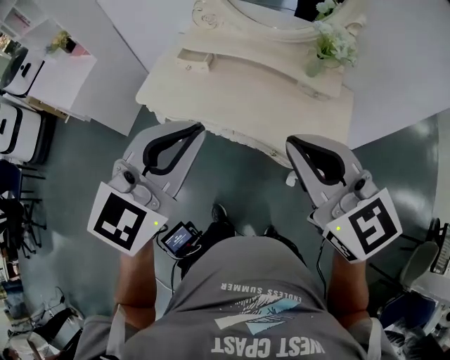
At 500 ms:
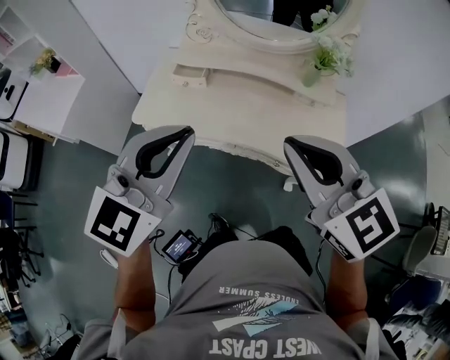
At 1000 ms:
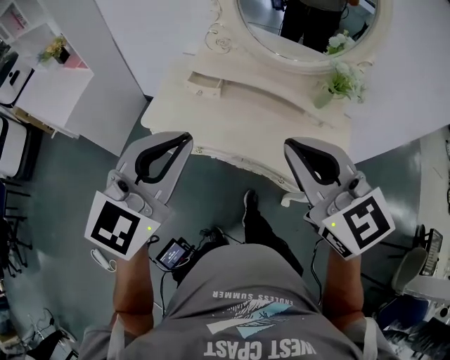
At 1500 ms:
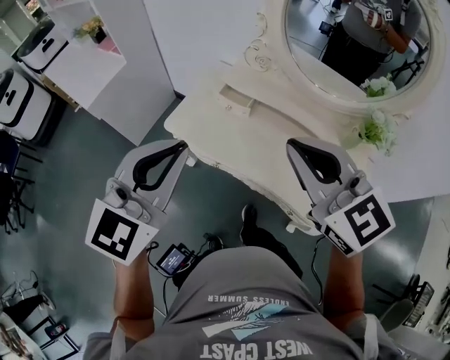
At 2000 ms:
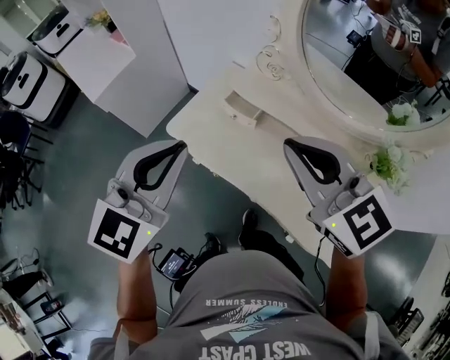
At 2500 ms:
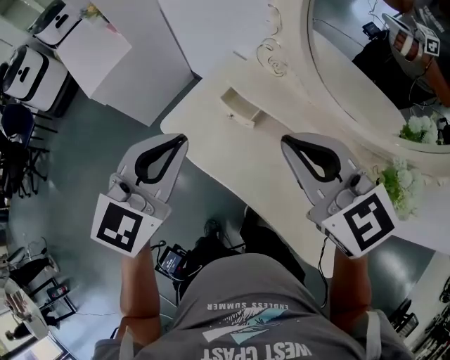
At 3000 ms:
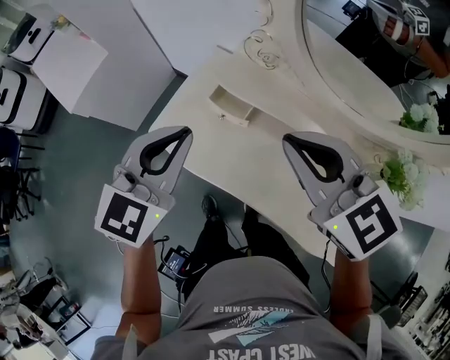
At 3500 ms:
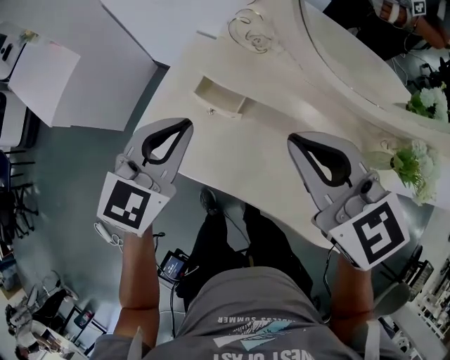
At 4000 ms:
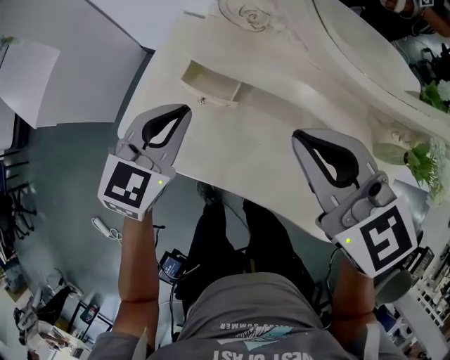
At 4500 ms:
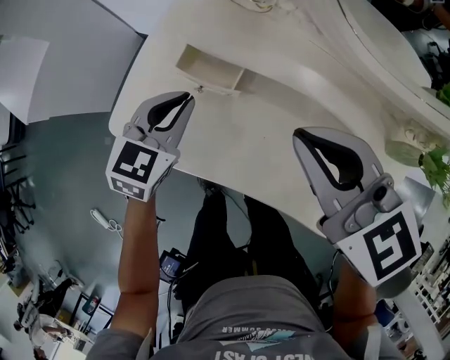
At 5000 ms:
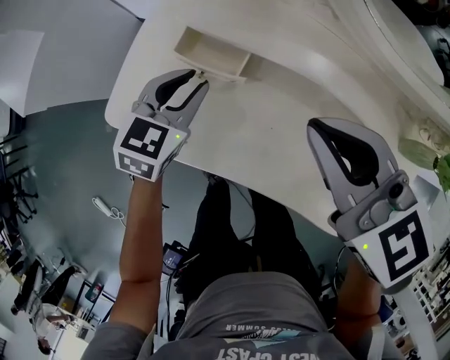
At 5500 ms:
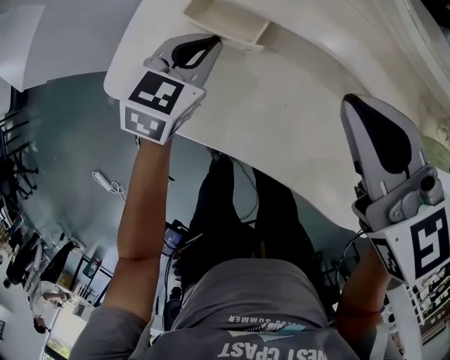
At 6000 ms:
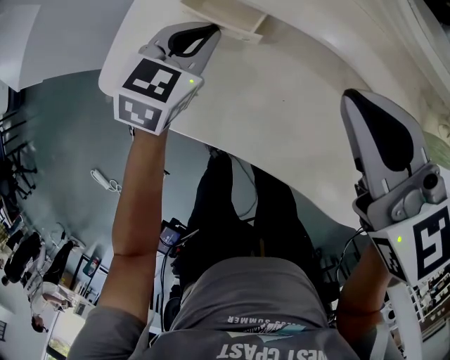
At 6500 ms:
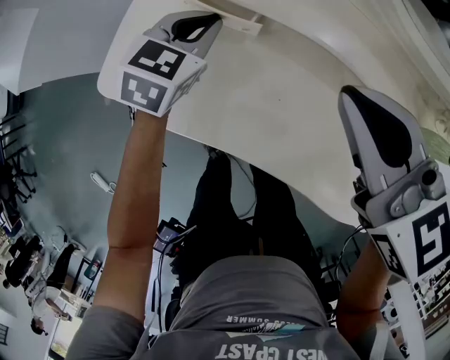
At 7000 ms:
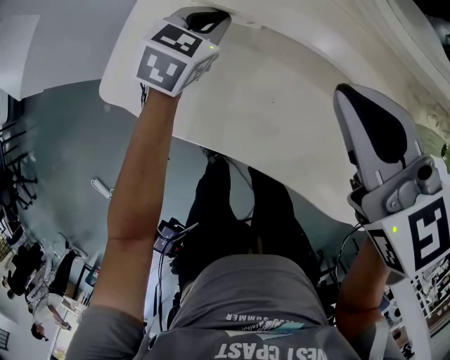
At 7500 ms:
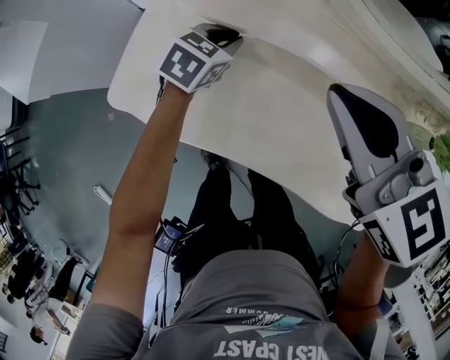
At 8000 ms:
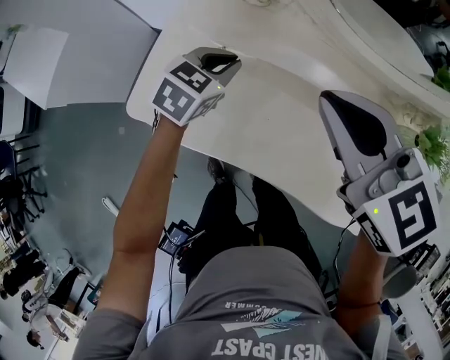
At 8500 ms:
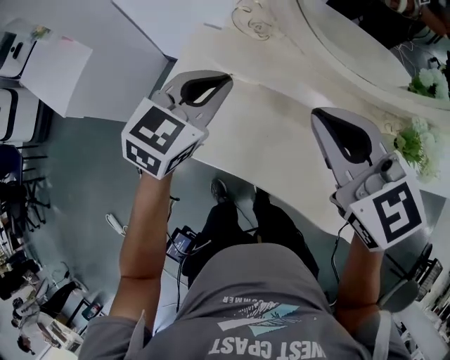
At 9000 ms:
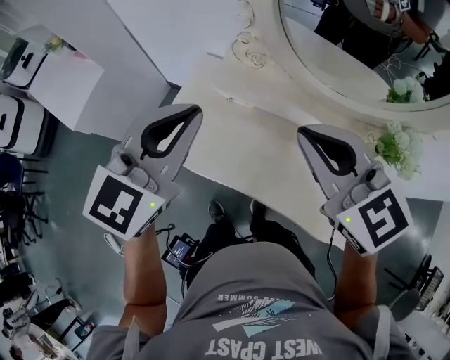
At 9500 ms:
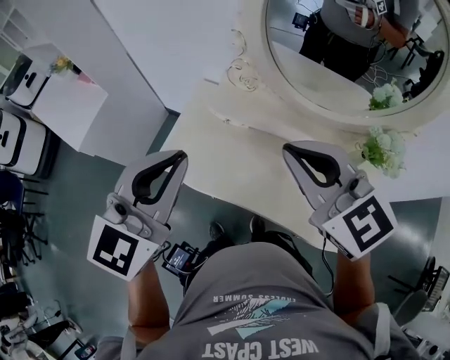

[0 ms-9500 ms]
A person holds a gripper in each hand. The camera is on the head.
0 ms to 2000 ms: The right gripper moves about 30 cm. Meanwhile the left gripper shifts by about 25 cm, and rotates approximately 20 degrees.
2000 ms to 4000 ms: The left gripper shifts about 35 cm downward and forward, while the right gripper travels downward and forward by about 20 cm.
4000 ms to 5500 ms: The right gripper travels downward by roughly 10 cm; the left gripper travels downward by about 15 cm, and opens, then closes once more.
5500 ms to 7500 ms: The left gripper moves to the right, about 5 cm.
7500 ms to 9500 ms: The left gripper travels upward and backward by approximately 50 cm, and angles its fingers upward, by about 30 degrees, while the right gripper is displaced upward and backward by roughly 25 cm.

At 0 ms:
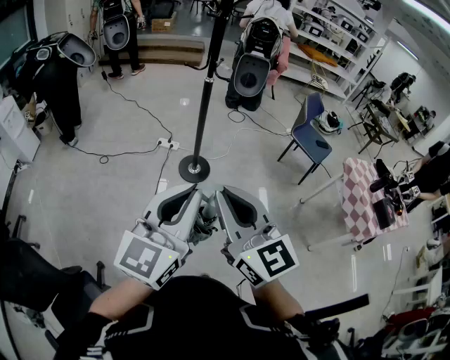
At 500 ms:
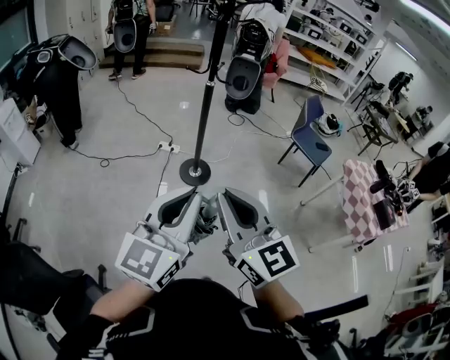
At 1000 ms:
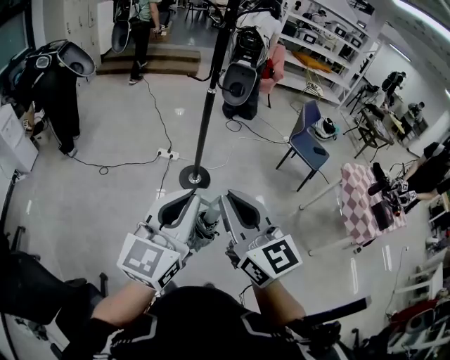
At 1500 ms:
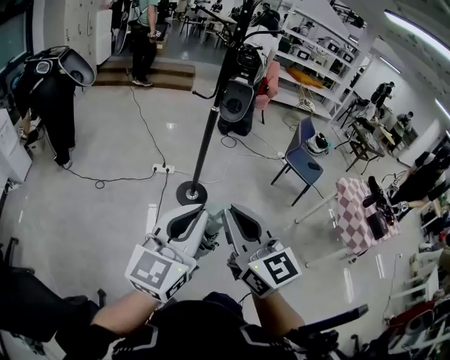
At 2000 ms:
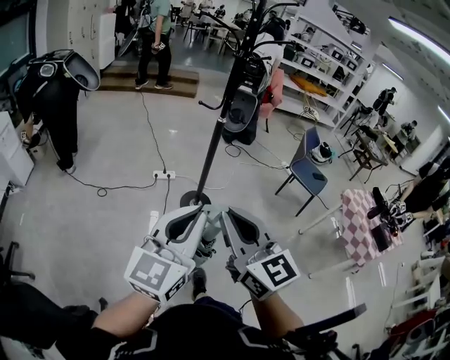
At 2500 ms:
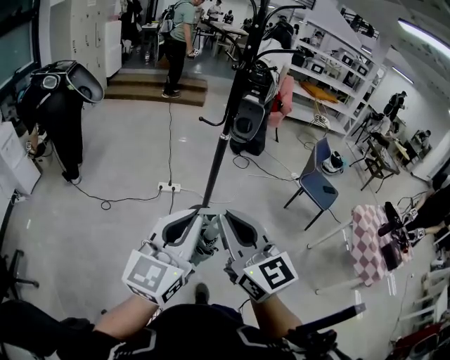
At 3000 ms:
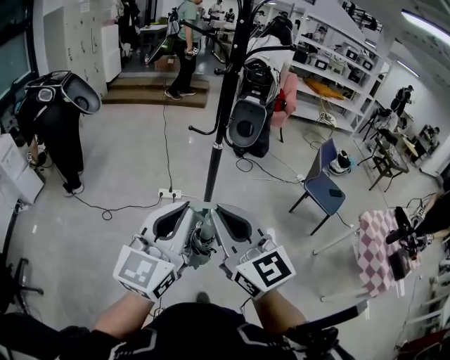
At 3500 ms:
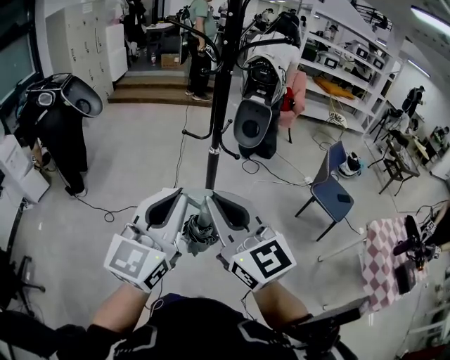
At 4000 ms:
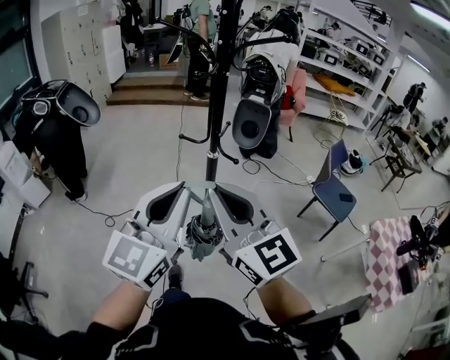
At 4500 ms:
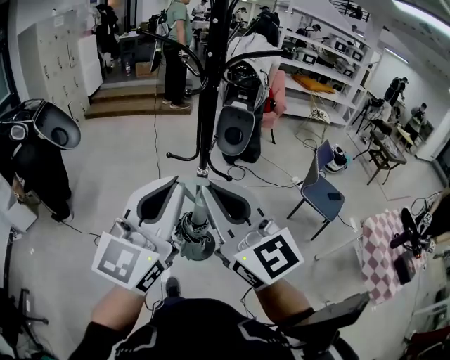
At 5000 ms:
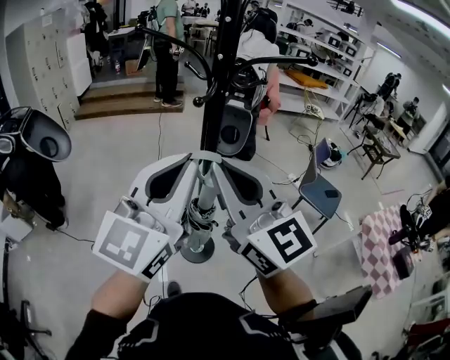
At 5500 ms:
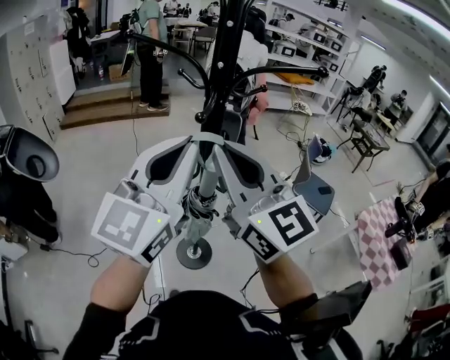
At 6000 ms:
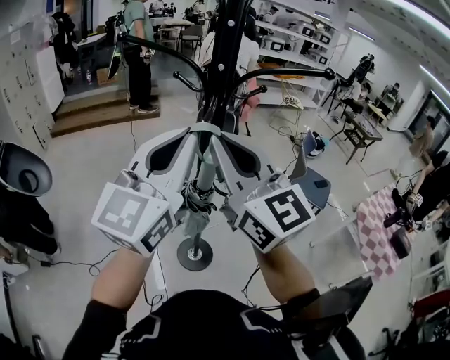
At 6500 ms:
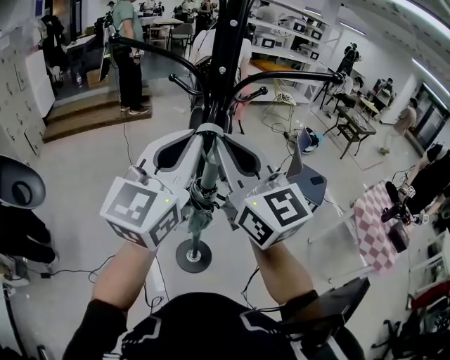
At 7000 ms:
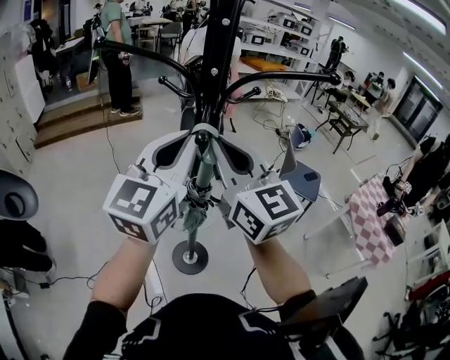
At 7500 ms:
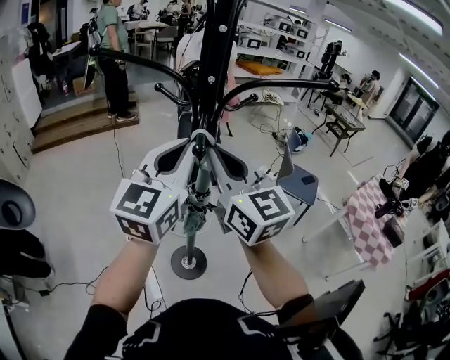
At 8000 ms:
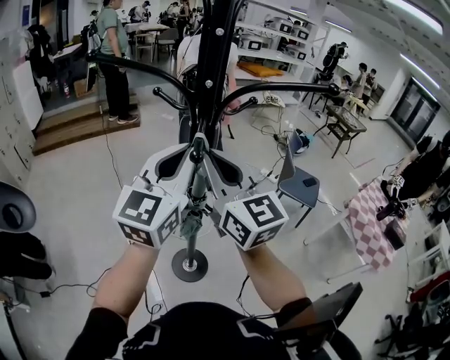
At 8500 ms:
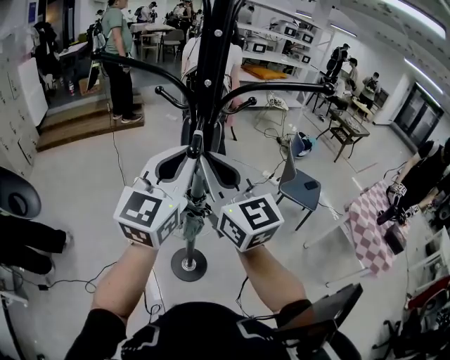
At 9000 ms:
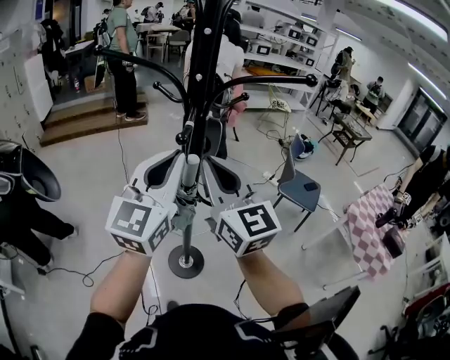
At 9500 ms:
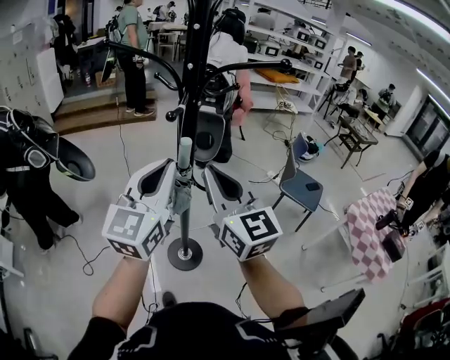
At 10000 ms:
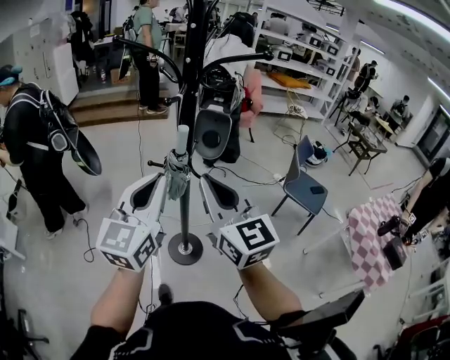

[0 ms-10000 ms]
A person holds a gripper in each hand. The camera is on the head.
0 ms to 2000 ms: The grippers both shift to the left and forward by about 15 cm.
2000 ms to 4000 ms: Both grippers move forward and to the right, about 30 cm.
4000 ms to 6000 ms: The grippers both shift forward by some 25 cm. The right gripper changes its angle by approximately 20 degrees.
6000 ms to 8000 ms: The two grippers go approximately 10 cm forward and downward.
8000 ms to 10000 ms: The left gripper heads backward, covering approximately 20 cm; the right gripper travels backward and to the right by roughly 20 cm.

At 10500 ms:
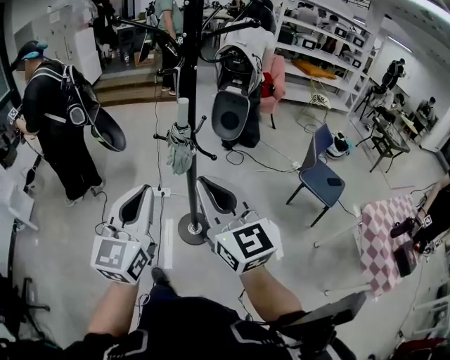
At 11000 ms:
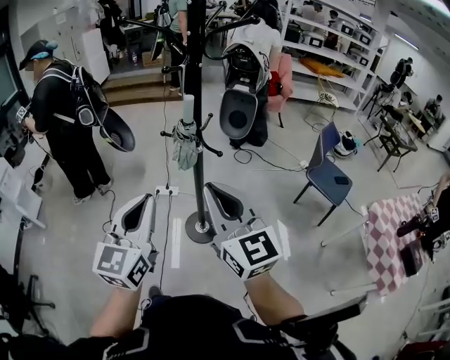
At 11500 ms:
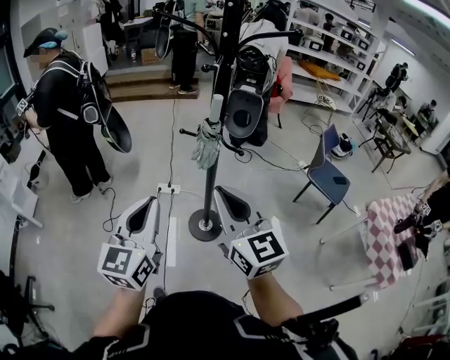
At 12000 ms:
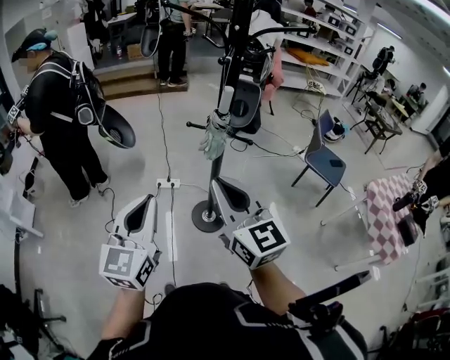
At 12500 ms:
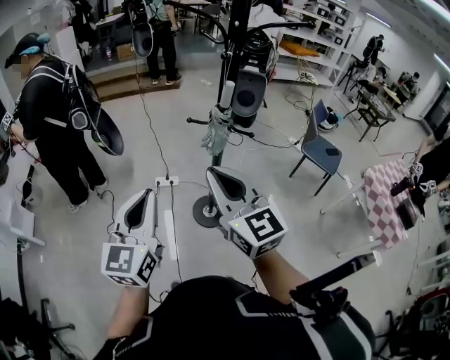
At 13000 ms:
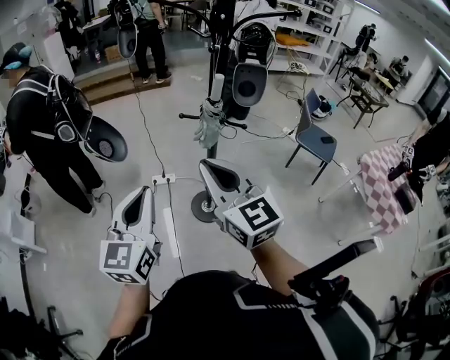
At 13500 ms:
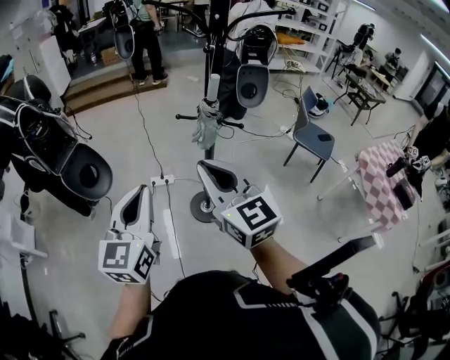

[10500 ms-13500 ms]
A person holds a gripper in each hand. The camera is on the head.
10500 ms to 12000 ms: Both grippers travel together to the left, some 15 cm.
12000 ms to 13500 ms: There are only small adjustments of the grippers.

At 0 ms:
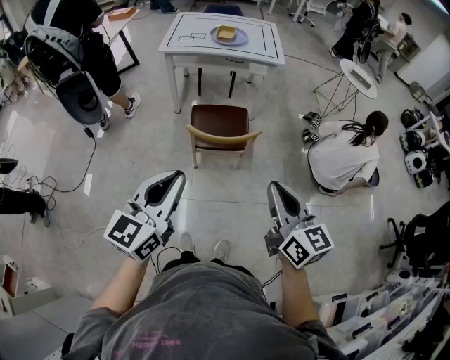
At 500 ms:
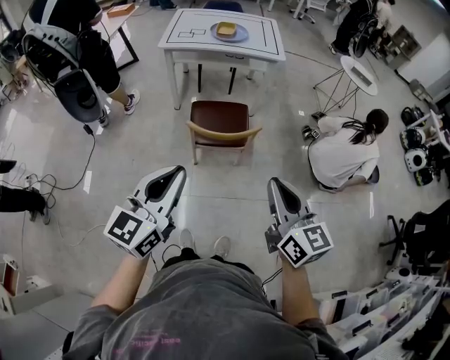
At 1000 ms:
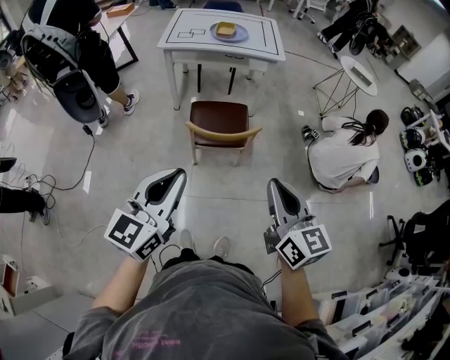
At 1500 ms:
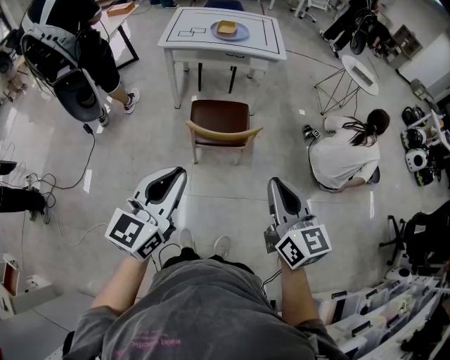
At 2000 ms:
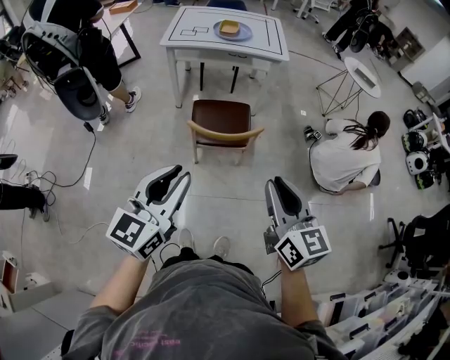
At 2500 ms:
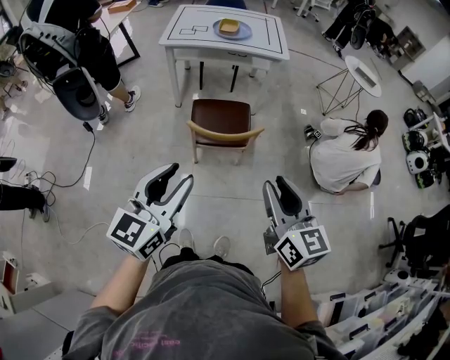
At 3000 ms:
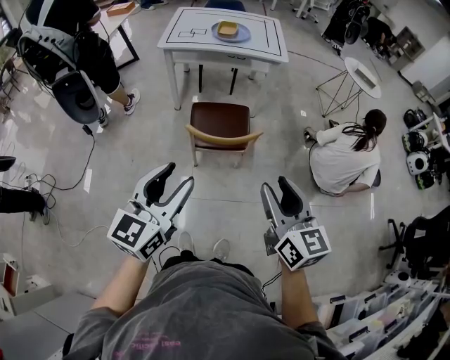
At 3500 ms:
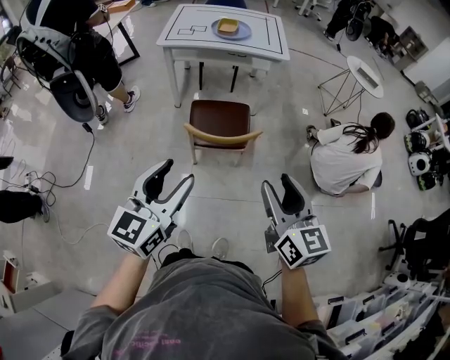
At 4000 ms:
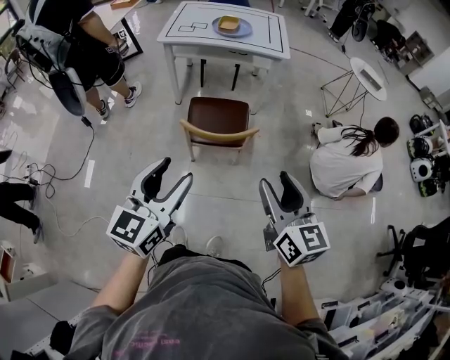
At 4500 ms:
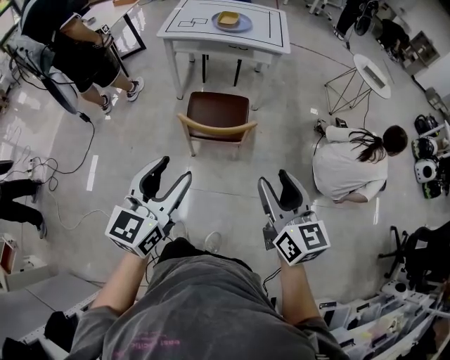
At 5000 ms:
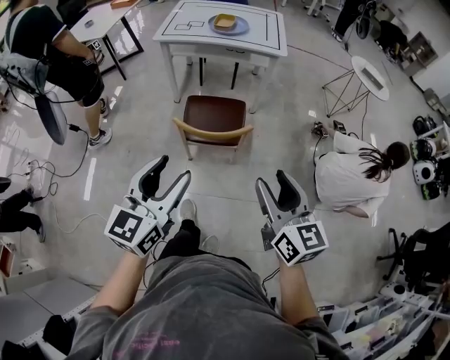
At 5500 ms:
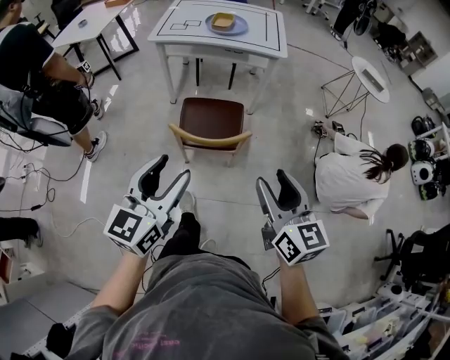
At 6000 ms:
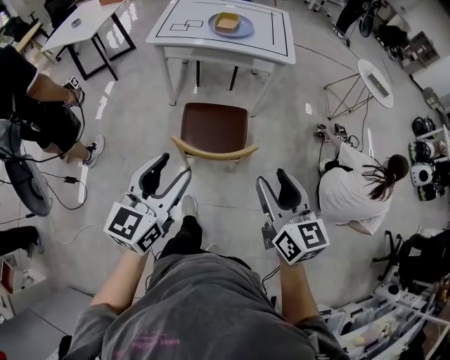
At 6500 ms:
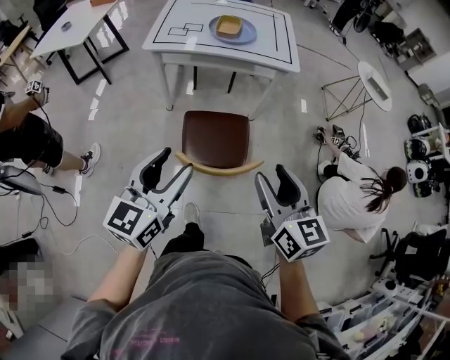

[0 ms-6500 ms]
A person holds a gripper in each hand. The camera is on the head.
0 ms to 2000 ms: There are only small adjustments of the grippers.
2000 ms to 4500 ms: The grippers both shift to the right by about 10 cm. The right gripper opens its fingers; the left gripper opens its fingers.
4500 ms to 6500 ms: Both grippers move forward, approximately 25 cm.
